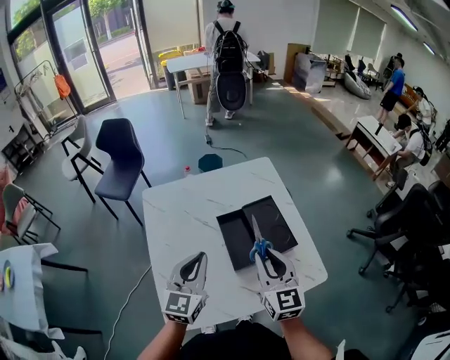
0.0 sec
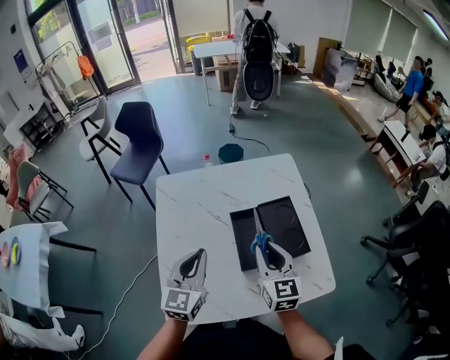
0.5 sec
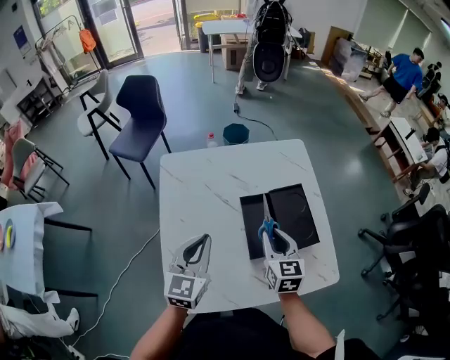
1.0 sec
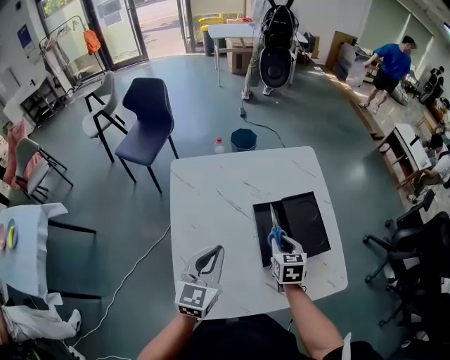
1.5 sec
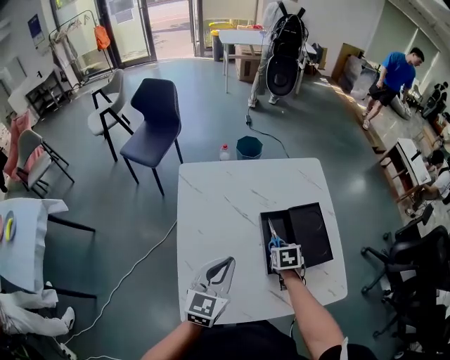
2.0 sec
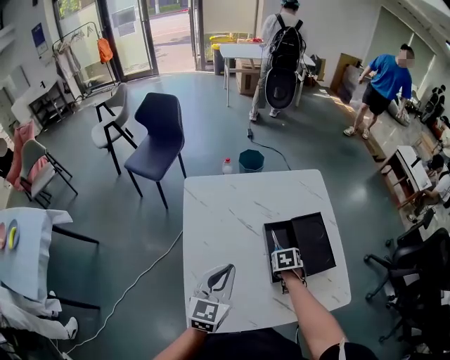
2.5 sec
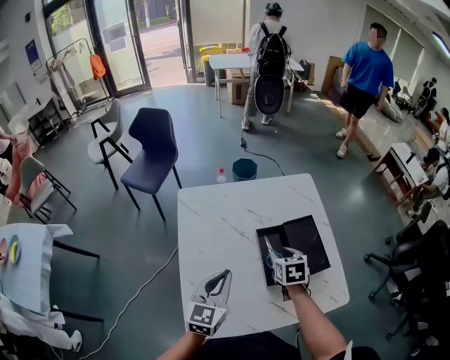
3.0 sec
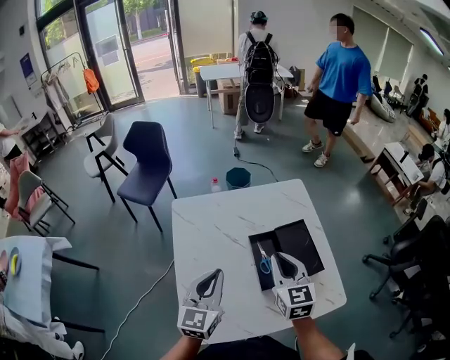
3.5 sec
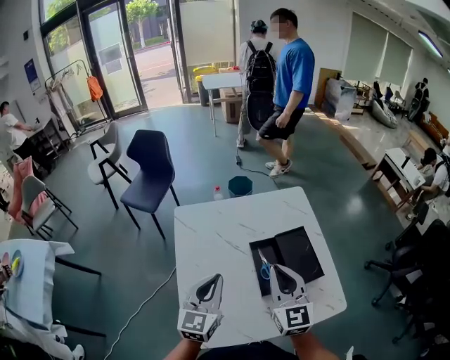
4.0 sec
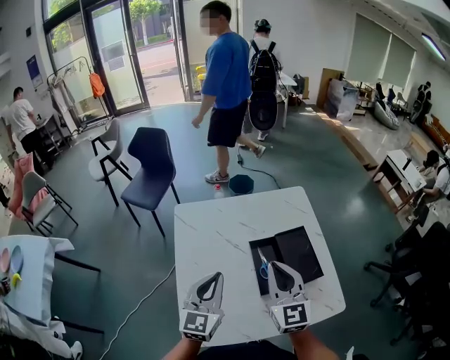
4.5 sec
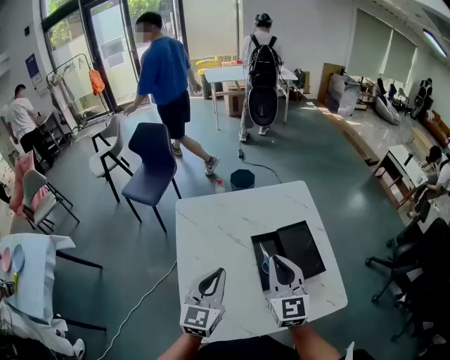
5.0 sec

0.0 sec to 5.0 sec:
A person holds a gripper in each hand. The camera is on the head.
0.0 sec to 2.5 sec: The left gripper moves to the left and downward, approximately 10 cm. Meanwhile the right gripper shifts about 30 cm downward and forward, and tilts its fingers about 60 degrees downward.
2.5 sec to 5.0 sec: The right gripper goes about 30 cm upward, tilts its fingers roughly 60 degrees upward, and closes its fingers; the left gripper travels upward by about 5 cm.

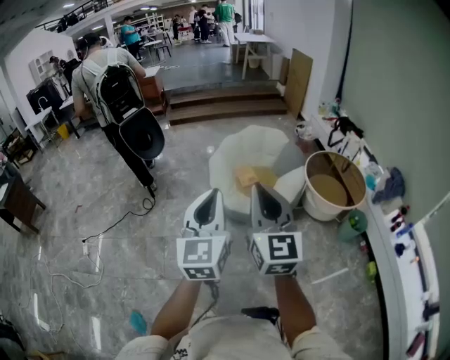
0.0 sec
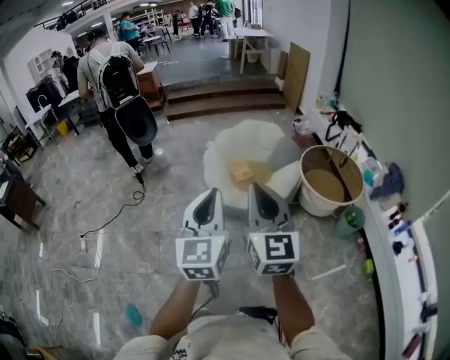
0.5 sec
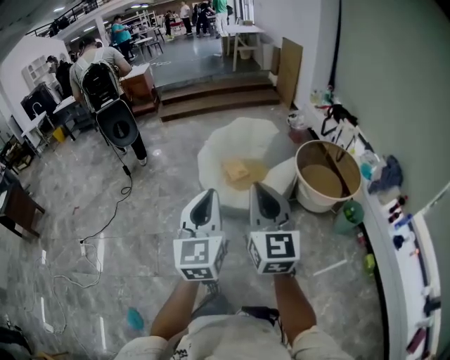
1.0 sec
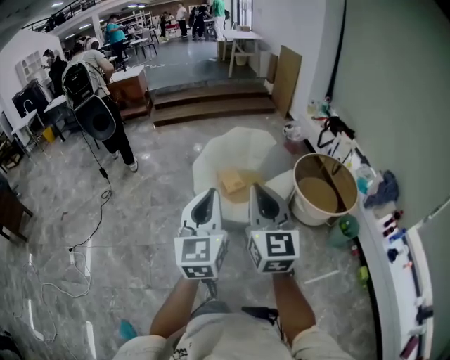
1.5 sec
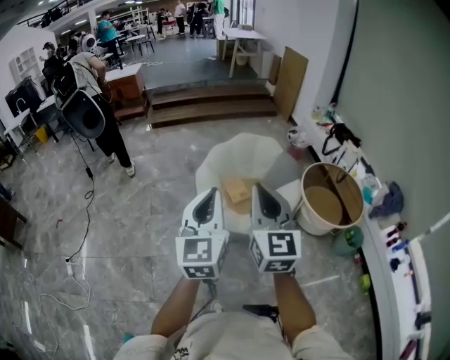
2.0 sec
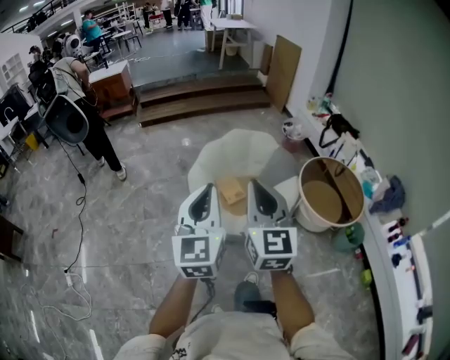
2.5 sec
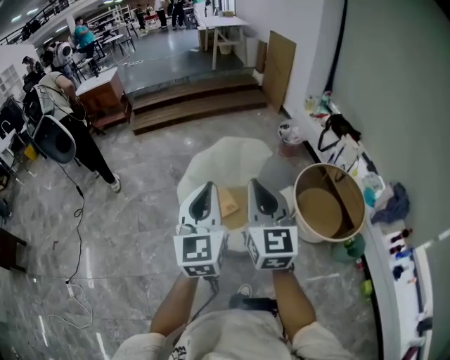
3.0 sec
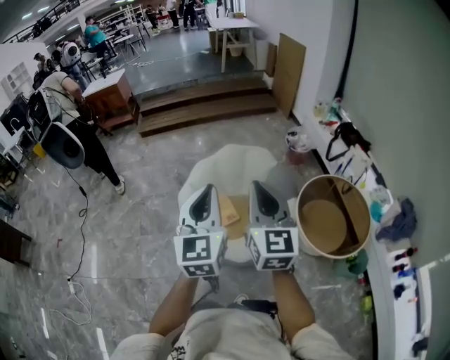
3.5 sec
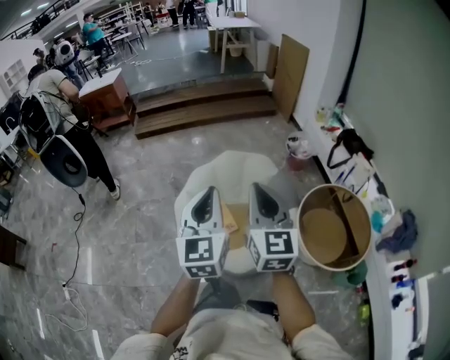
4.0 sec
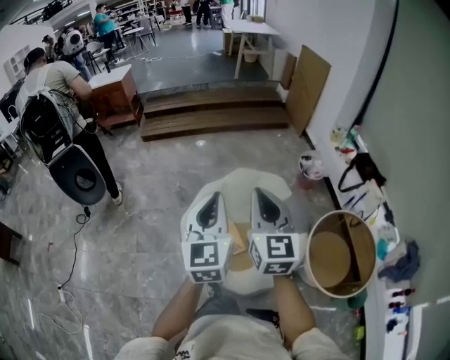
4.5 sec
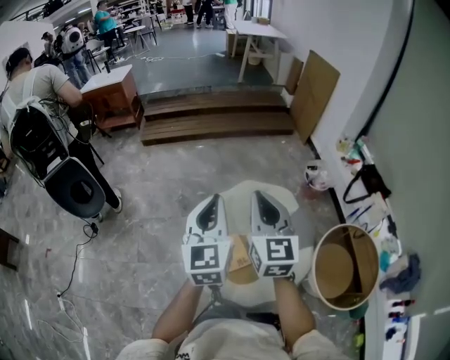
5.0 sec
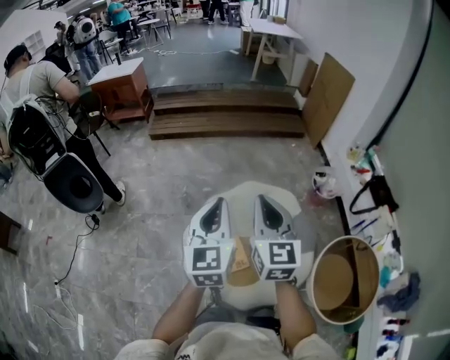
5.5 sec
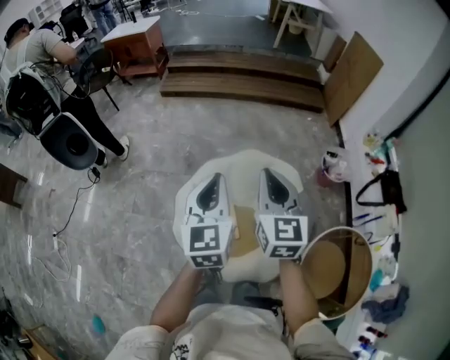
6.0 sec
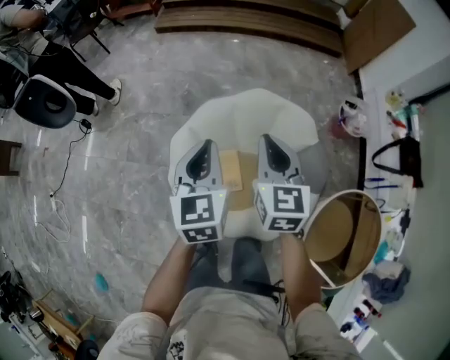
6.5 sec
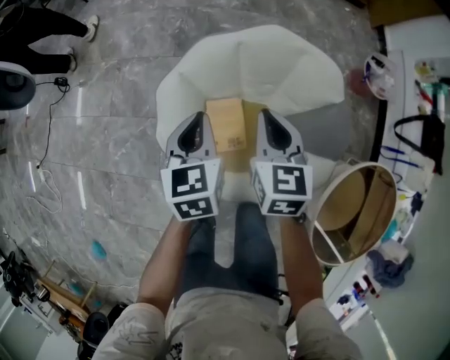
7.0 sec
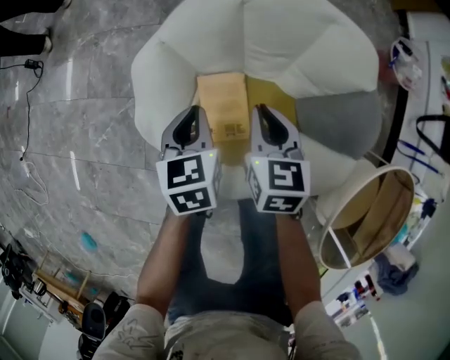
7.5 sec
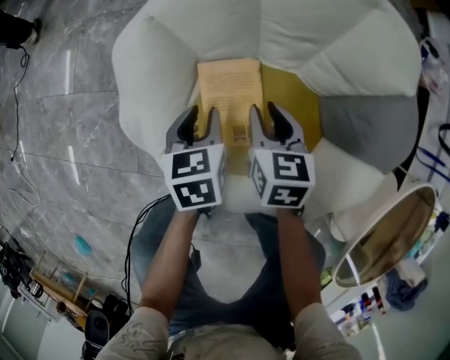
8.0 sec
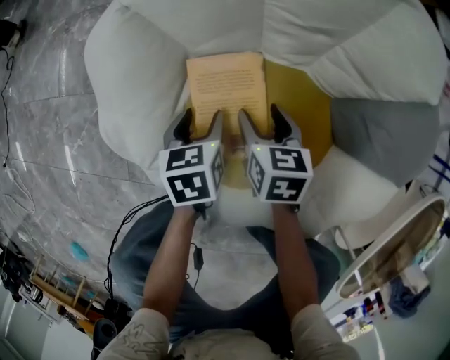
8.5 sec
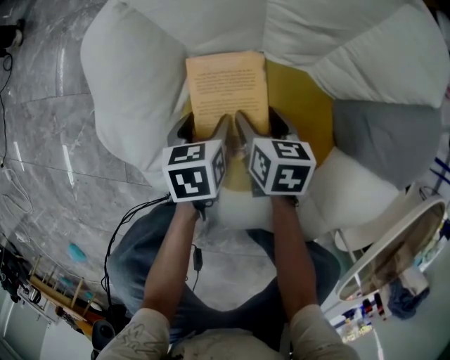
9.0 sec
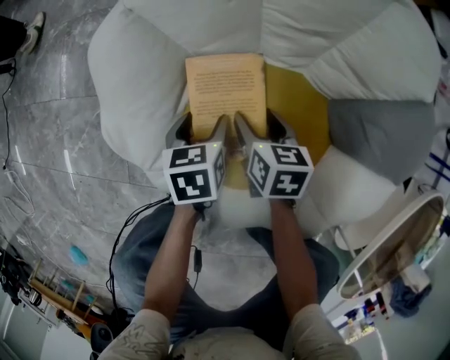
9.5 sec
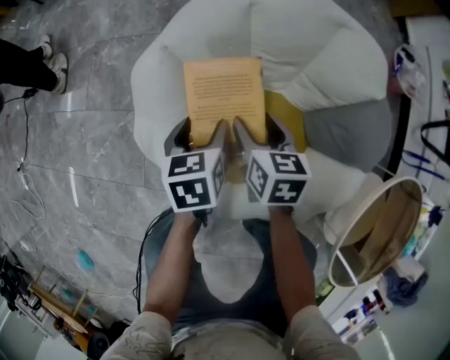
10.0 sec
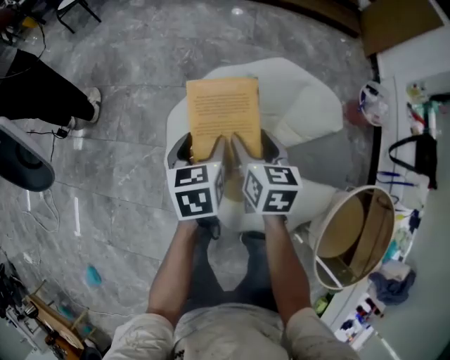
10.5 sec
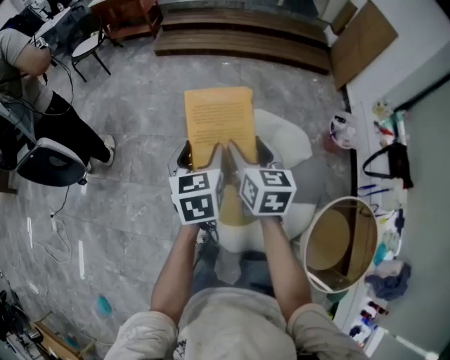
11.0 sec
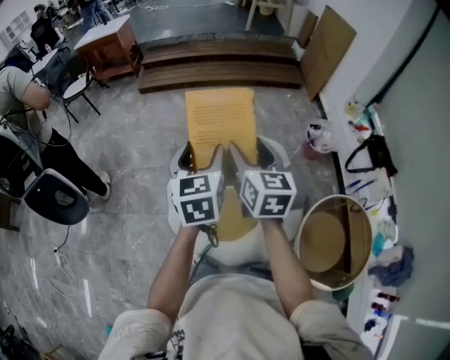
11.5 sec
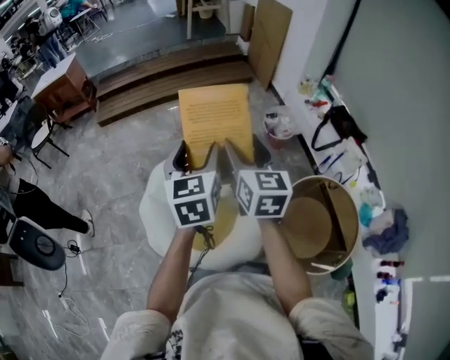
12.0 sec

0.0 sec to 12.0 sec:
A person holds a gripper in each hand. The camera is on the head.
0.0 sec to 2.0 sec: Both grippers travel together forward, approximately 25 cm.
2.0 sec to 4.0 sec: The two grippers travel together, forward and to the right, about 40 cm.
4.0 sec to 6.0 sec: The two grippers go roughly 30 cm forward.
6.0 sec to 8.0 sec: The two grippers go some 70 cm downward. The right gripper angles its fingers downward, by roughly 40 degrees, and opens its fingers. The left gripper tips its fingers downward by roughly 40 degrees, and opens.
8.0 sec to 10.0 sec: The two grippers go approximately 10 cm upward. The right gripper opens up; the left gripper opens up.
10.0 sec to 12.0 sec: The two grippers go approximately 60 cm upward. The right gripper tips its fingers upward by approximately 30 degrees. Meanwhile the left gripper angles its fingers upward, by some 40 degrees.

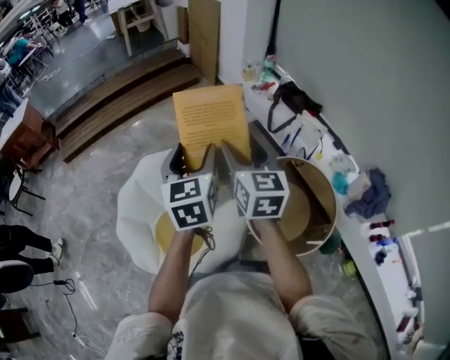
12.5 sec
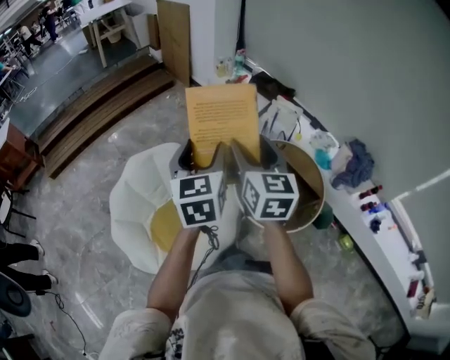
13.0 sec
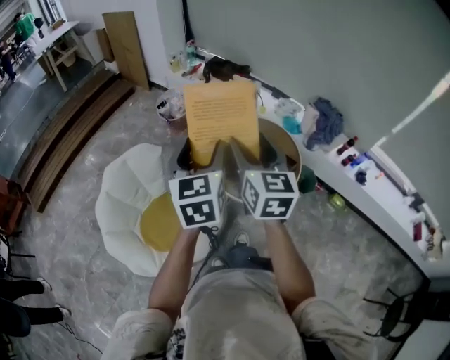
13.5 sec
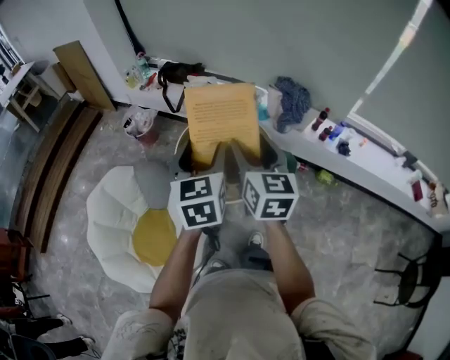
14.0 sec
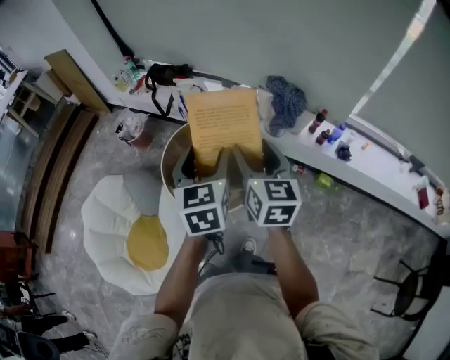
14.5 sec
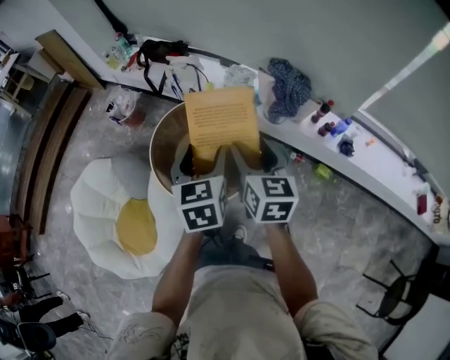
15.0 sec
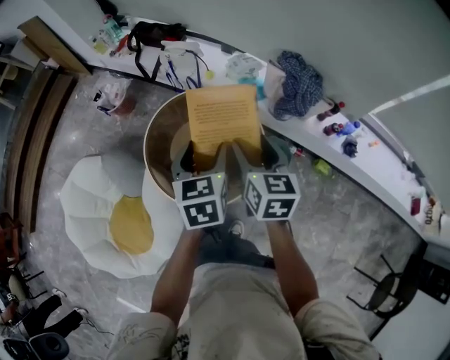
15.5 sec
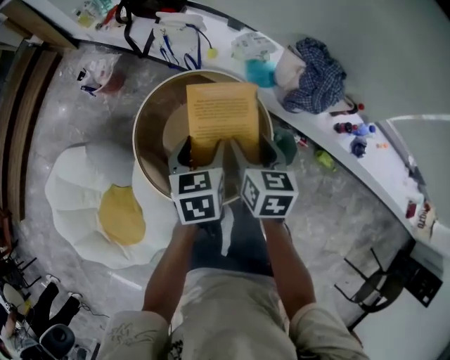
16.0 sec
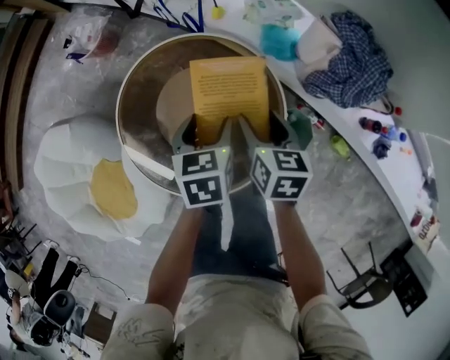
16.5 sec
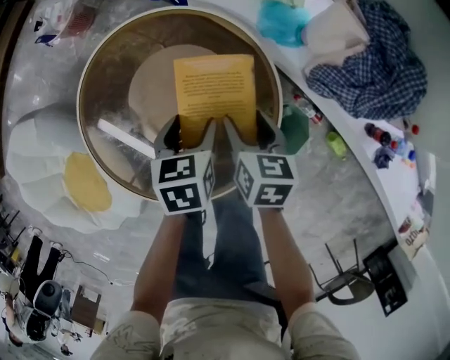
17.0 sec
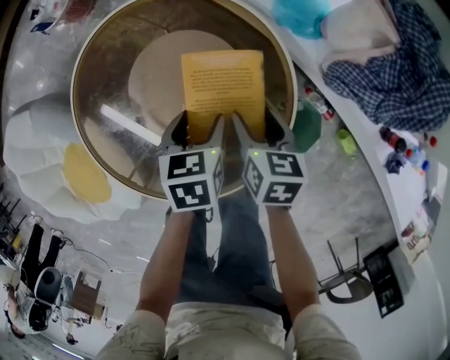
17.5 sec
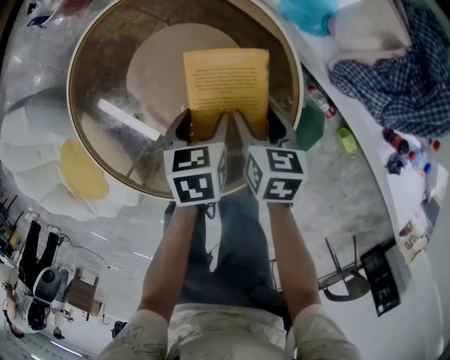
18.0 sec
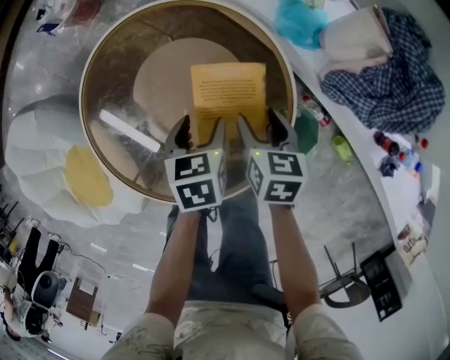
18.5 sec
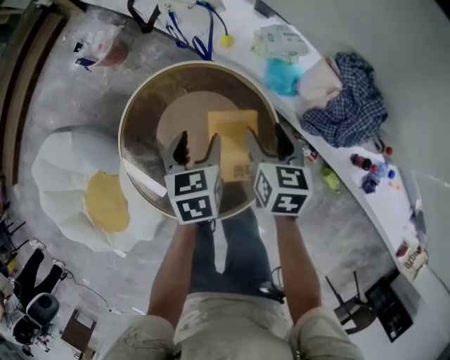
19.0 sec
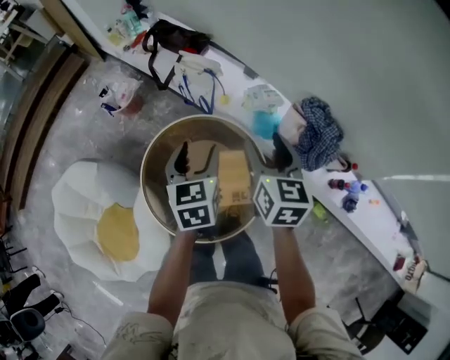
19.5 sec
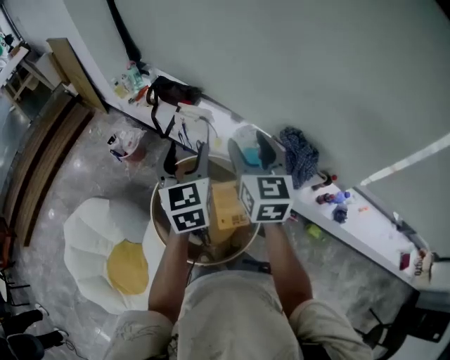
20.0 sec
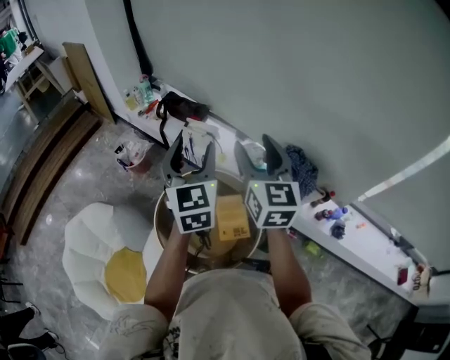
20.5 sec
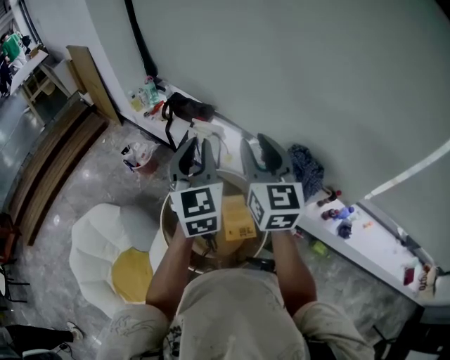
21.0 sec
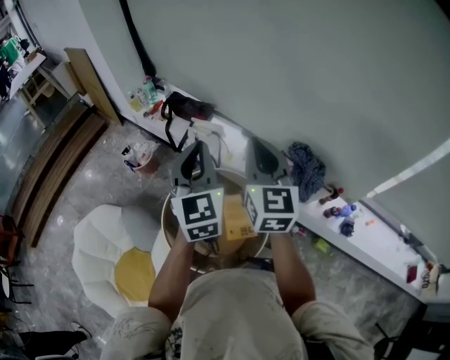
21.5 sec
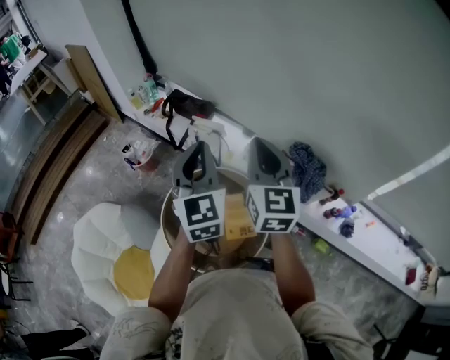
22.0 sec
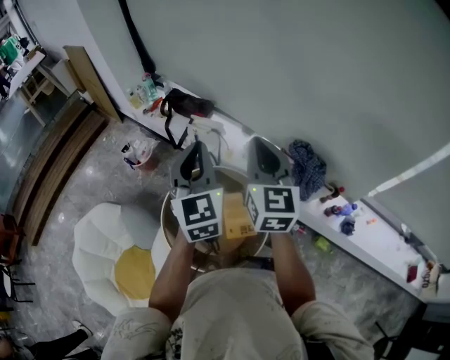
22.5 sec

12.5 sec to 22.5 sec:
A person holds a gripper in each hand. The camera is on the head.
12.5 sec to 14.5 sec: The two grippers travel together, some 50 cm. The right gripper rotates roughly 40 degrees. Meanwhile the left gripper swivels approximately 40 degrees.
14.5 sec to 16.5 sec: Both grippers travel together downward and forward, some 50 cm. The right gripper points its fingers roughly 30 degrees further downward. The left gripper points its fingers about 30 degrees further downward.
16.5 sec to 18.5 sec: Both grippers travel together downward, about 15 cm.
18.5 sec to 20.5 sec: Both grippers travel together upward, approximately 60 cm. The right gripper angles its fingers upward, by some 50 degrees. Meanwhile the left gripper tips its fingers upward by about 60 degrees.
20.5 sec to 22.5 sec: The right gripper closes. The left gripper closes.
